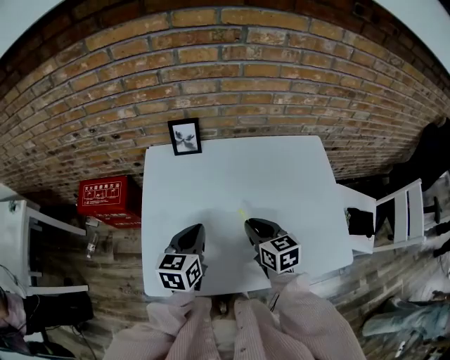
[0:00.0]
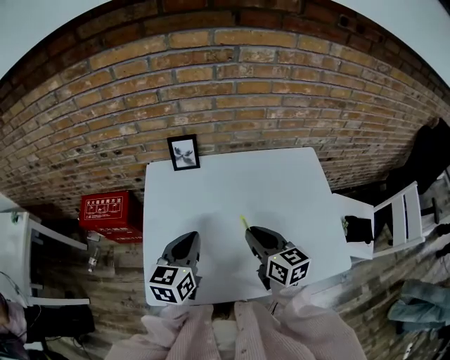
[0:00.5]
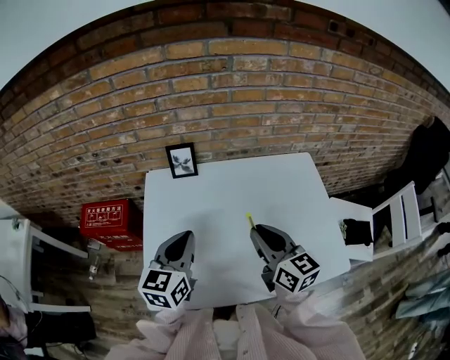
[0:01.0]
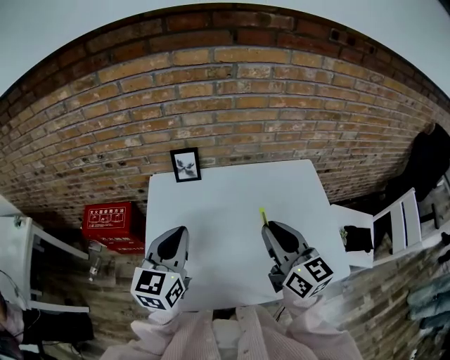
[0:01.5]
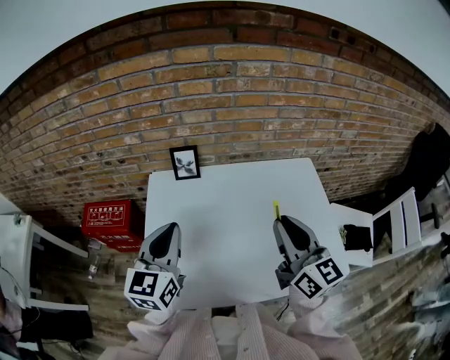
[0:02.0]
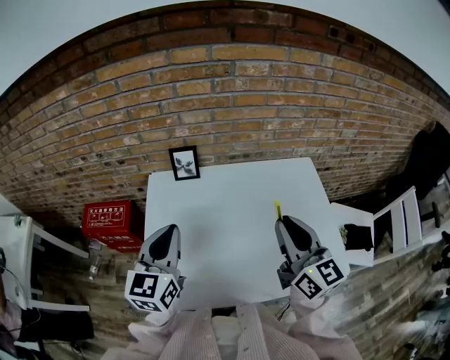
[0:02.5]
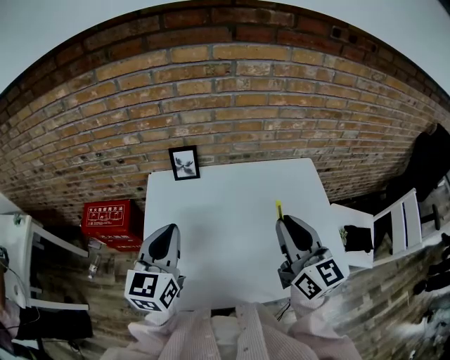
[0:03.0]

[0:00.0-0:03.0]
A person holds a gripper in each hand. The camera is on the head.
0:00.0 to 0:01.5: Both grippers travel together upward, about 15 cm. The left gripper turns by approximately 20 degrees; the right gripper tilts its fingers about 30 degrees upward.
0:01.5 to 0:03.0: There are only small adjustments of the grippers.

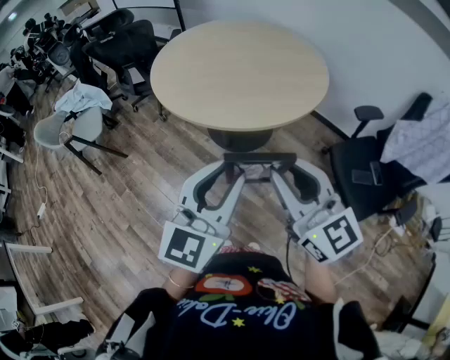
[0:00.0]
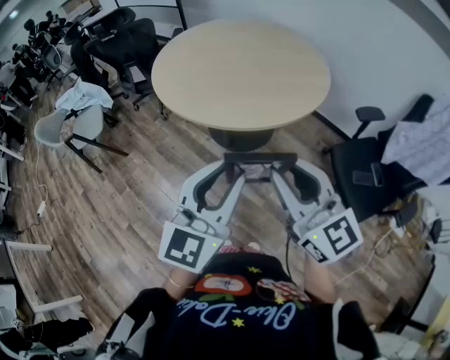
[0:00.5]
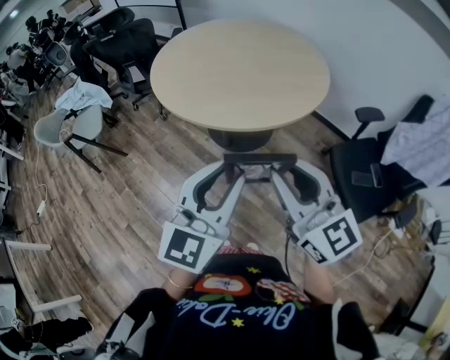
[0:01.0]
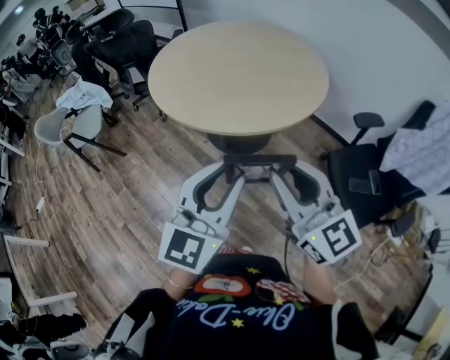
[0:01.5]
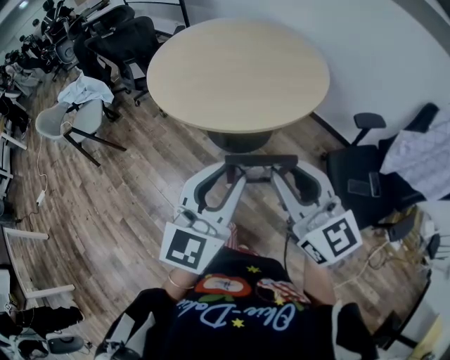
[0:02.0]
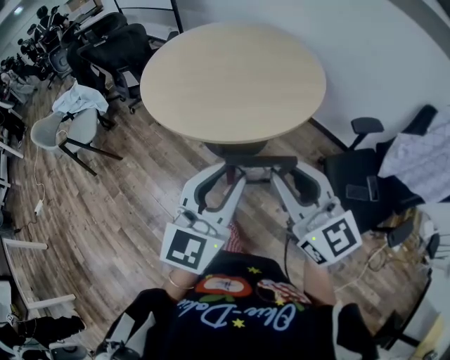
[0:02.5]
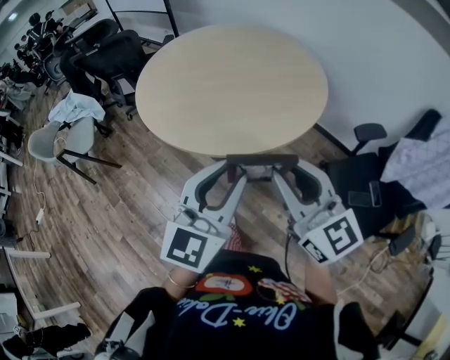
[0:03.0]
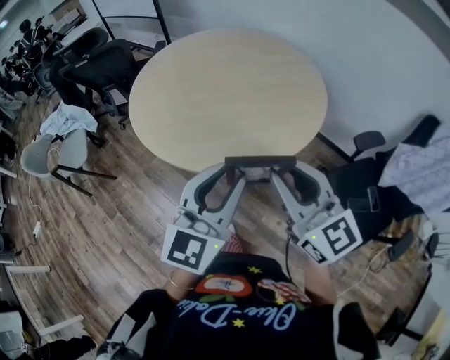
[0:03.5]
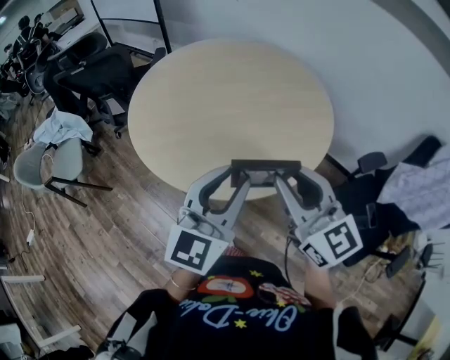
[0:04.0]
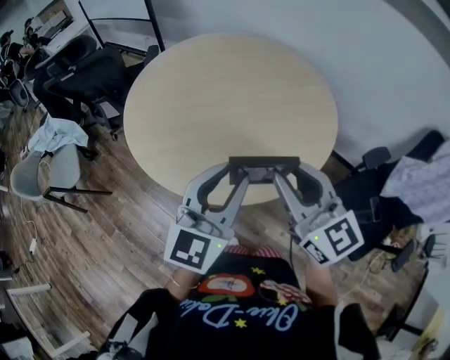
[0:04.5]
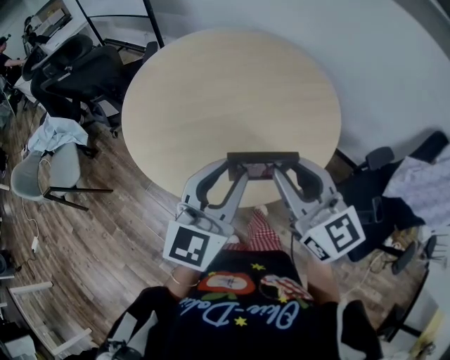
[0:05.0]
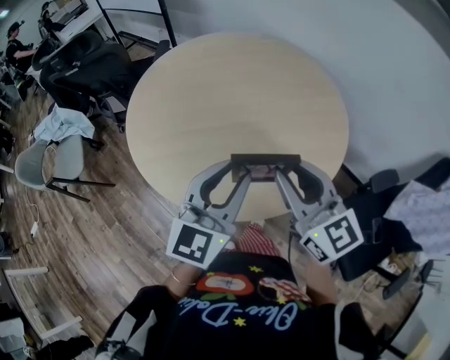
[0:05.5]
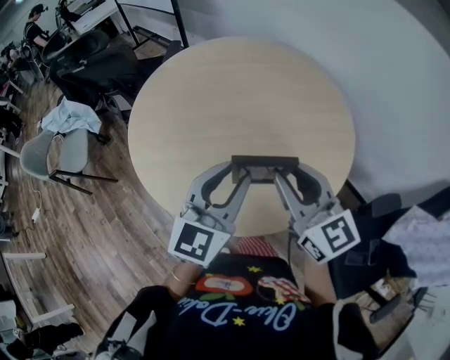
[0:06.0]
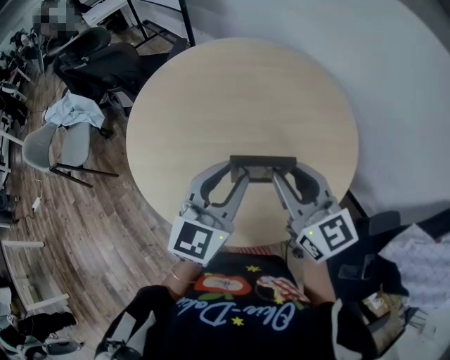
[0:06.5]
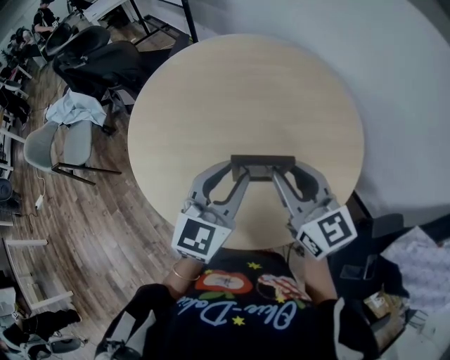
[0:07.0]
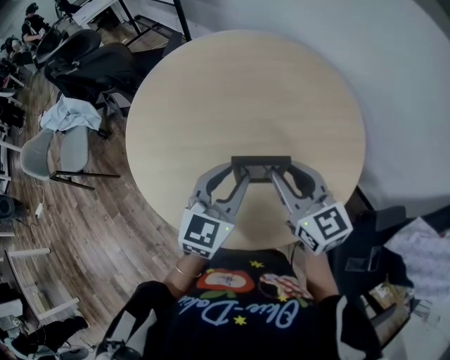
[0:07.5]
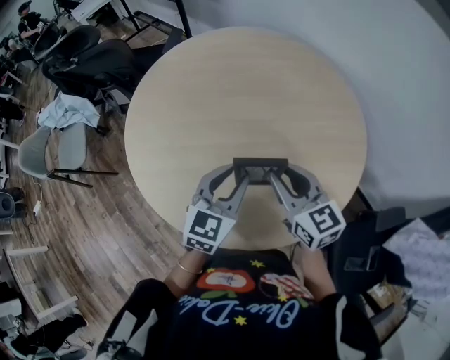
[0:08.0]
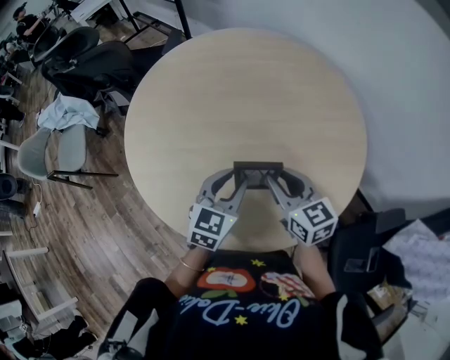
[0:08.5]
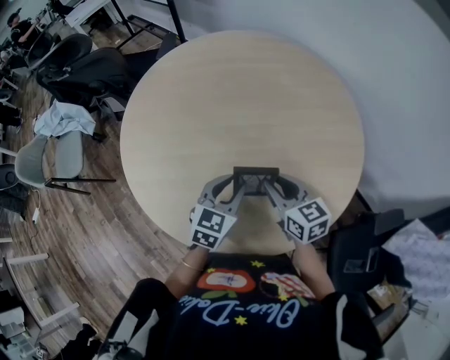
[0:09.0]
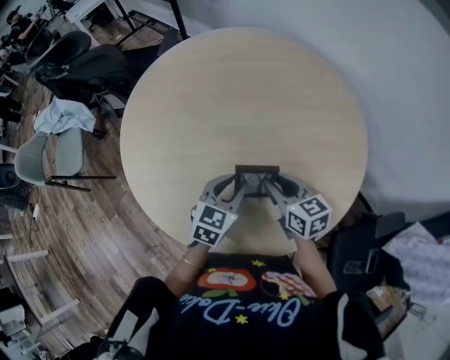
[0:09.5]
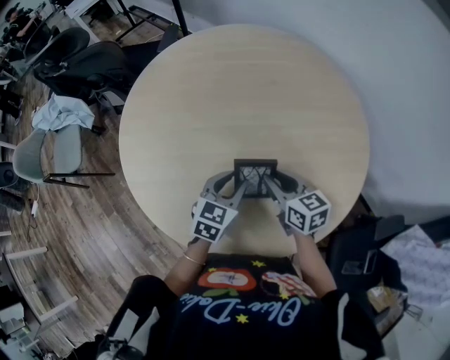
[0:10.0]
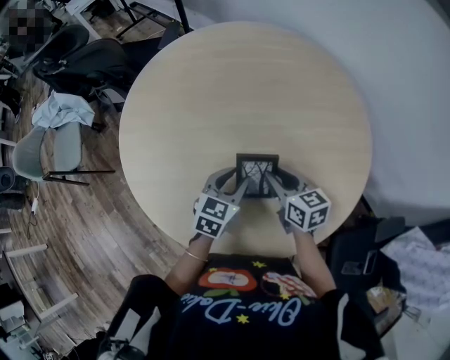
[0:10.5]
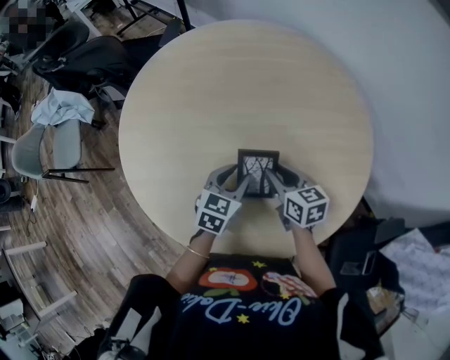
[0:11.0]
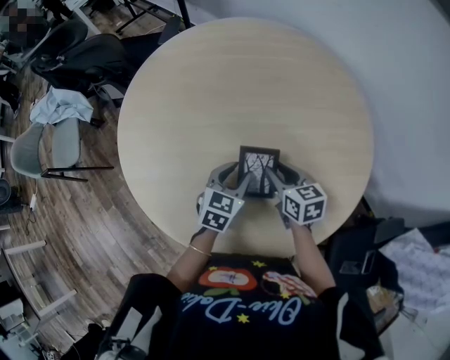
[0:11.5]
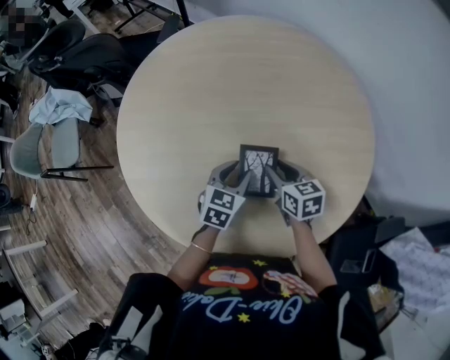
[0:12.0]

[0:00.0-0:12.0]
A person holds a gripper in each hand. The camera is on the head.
0:00.0 to 0:02.0: Both grippers move to the right, approximately 5 cm.
0:02.0 to 0:04.0: The grippers both shift forward by about 25 cm.
0:04.0 to 0:06.0: Both grippers move forward, some 15 cm.
0:06.0 to 0:08.0: The grippers both shift downward and forward by approximately 15 cm.
0:08.0 to 0:10.0: The two grippers go some 10 cm downward. The right gripper turns by about 20 degrees.
0:10.0 to 0:12.0: The right gripper ends up some 5 cm from where it was.

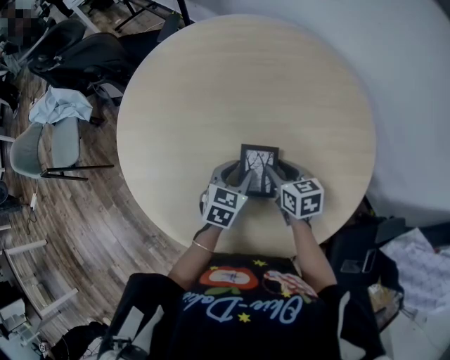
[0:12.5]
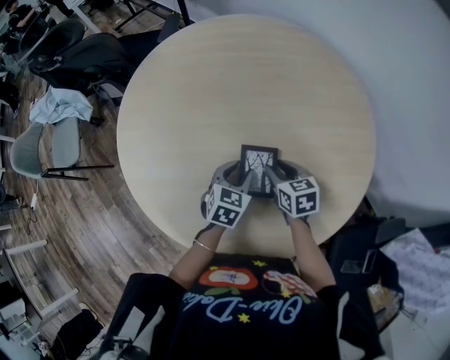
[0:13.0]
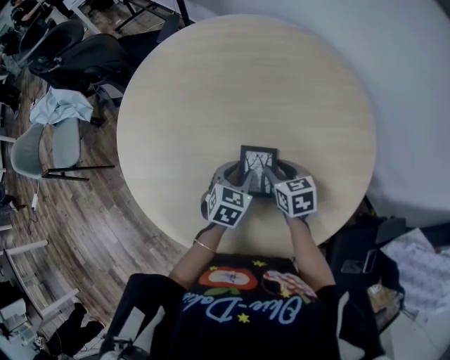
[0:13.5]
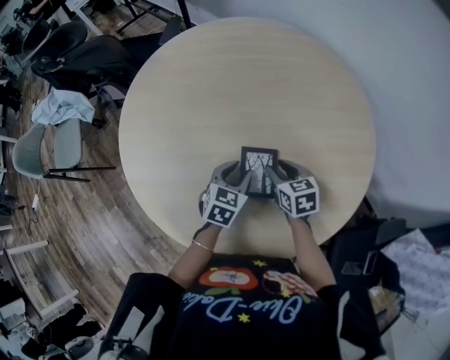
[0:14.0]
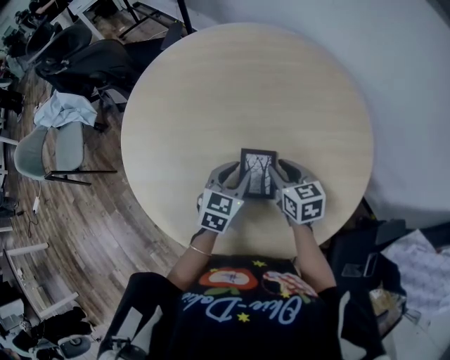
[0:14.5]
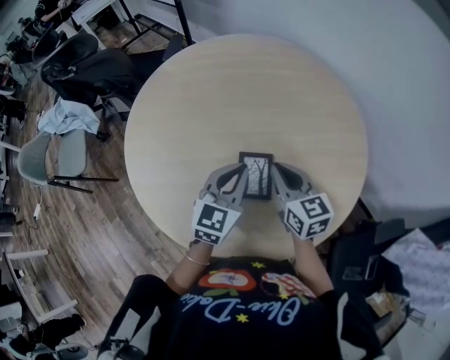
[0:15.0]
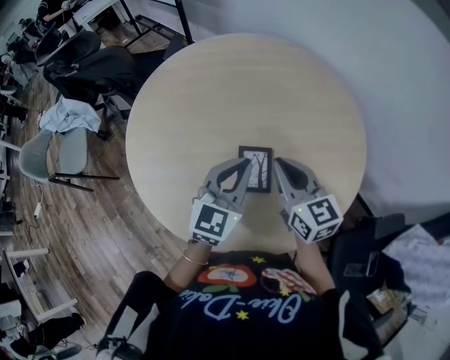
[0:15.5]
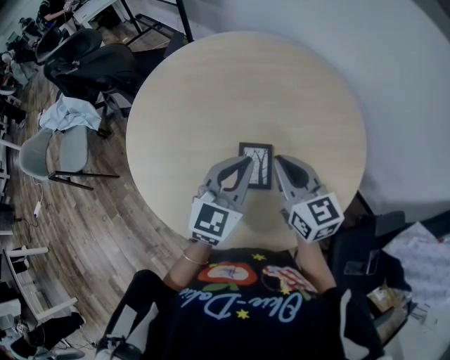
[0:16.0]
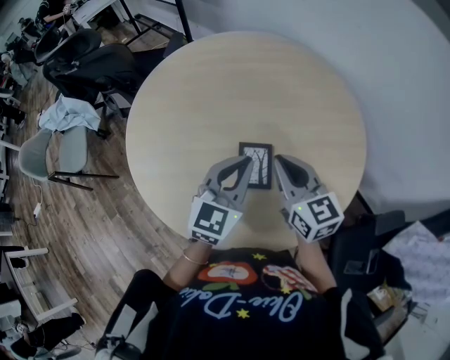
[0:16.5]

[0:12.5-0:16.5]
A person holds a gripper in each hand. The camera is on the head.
0:12.5 to 0:14.5: There are only small adjustments of the grippers.
0:14.5 to 0:16.5: The grippers both shift upward by approximately 15 cm. The left gripper rotates about 20 degrees, and closes. Meanwhile the right gripper turns by roughly 30 degrees, and closes up.

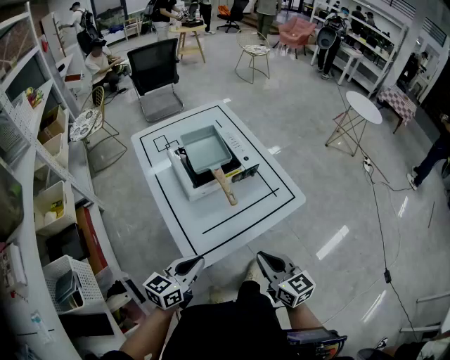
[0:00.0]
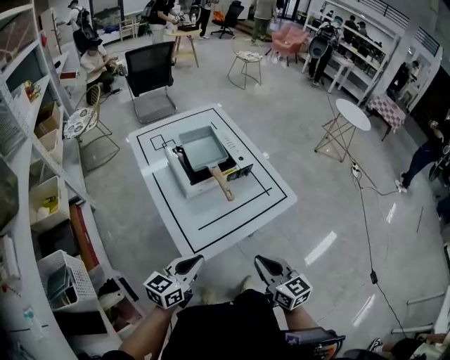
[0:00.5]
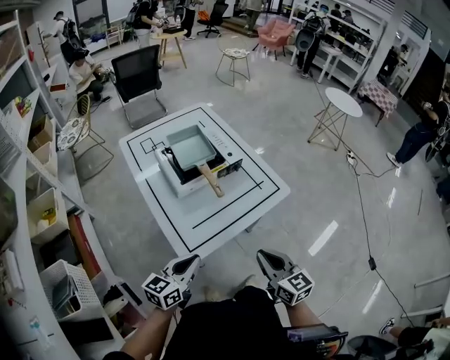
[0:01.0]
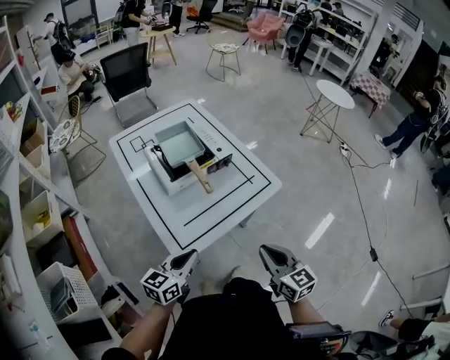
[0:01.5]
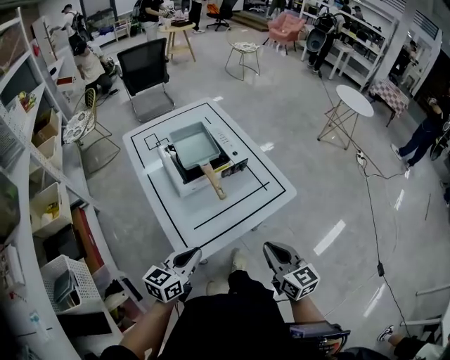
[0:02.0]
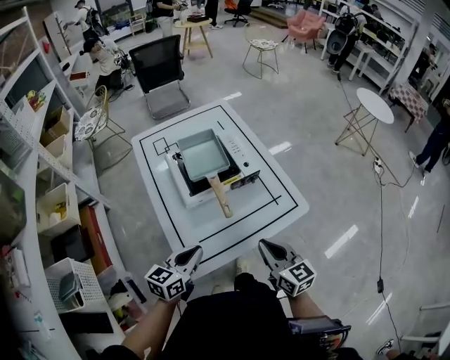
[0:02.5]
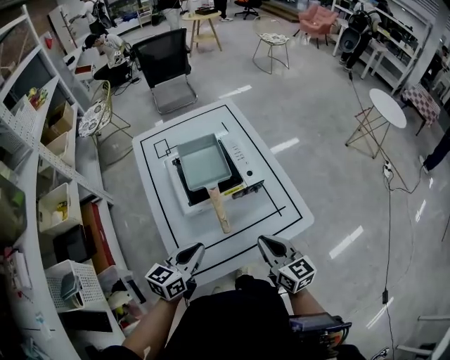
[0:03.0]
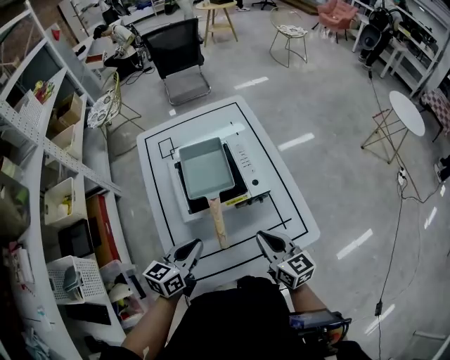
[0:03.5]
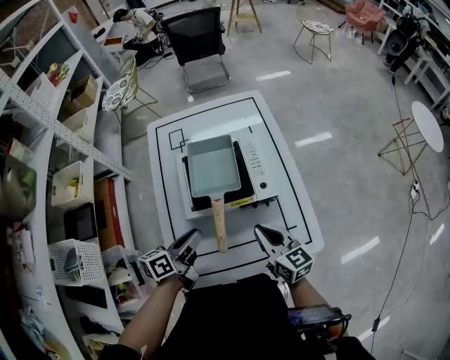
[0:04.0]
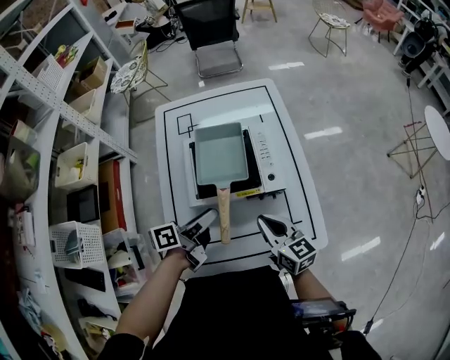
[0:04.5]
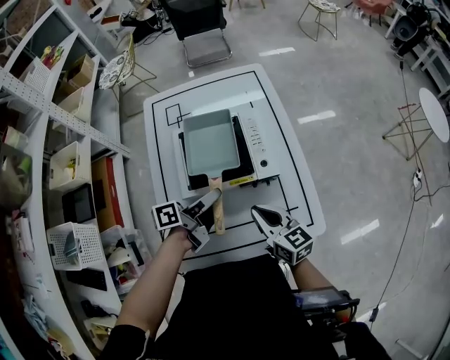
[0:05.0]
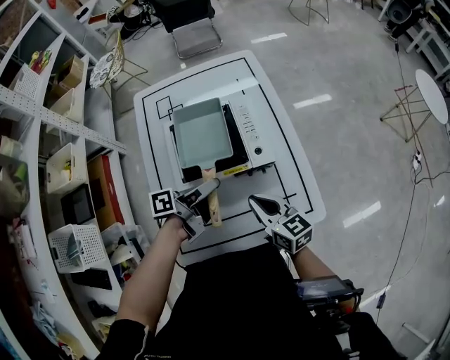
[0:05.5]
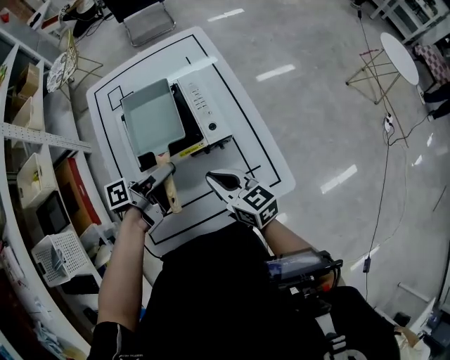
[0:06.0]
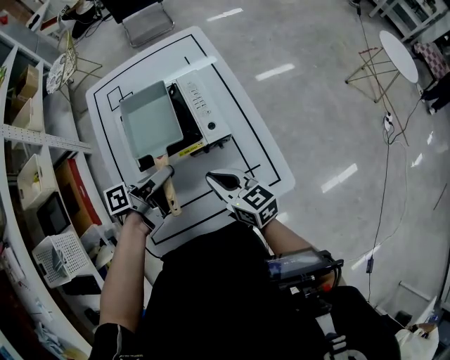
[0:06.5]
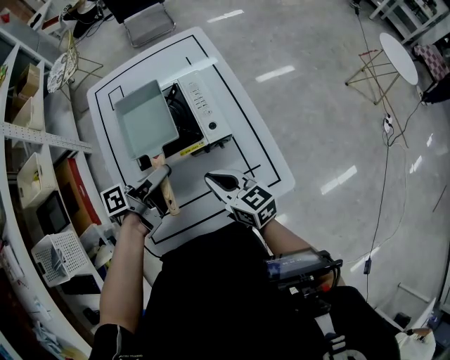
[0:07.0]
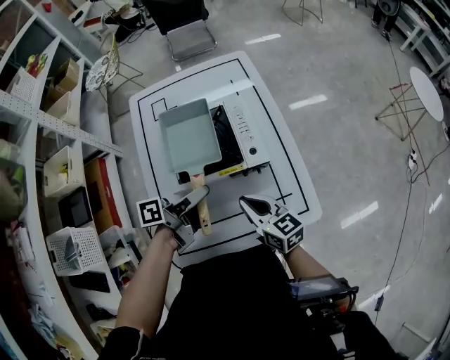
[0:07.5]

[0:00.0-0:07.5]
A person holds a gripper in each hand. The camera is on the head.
0:02.0 to 0:04.0: Both grippers move forward, approximately 25 cm. The right gripper turns by some 30 degrees; the left gripper rotates about 40 degrees.
0:04.0 to 0:05.5: The left gripper moves to the right and forward, some 10 cm, and changes its angle by roughly 30 degrees.
0:05.5 to 0:07.5: The grippers make only small movements.
